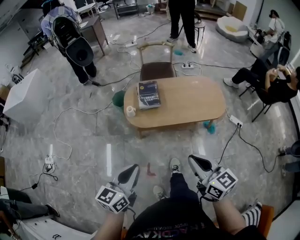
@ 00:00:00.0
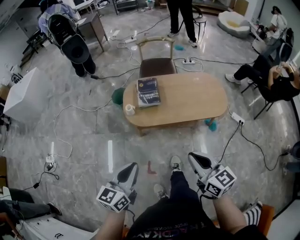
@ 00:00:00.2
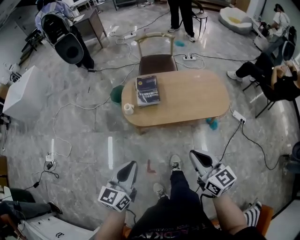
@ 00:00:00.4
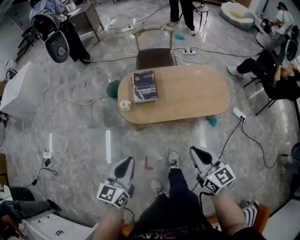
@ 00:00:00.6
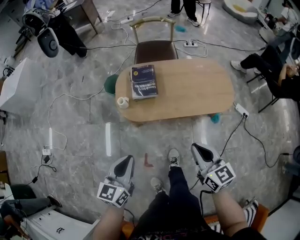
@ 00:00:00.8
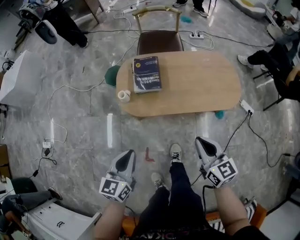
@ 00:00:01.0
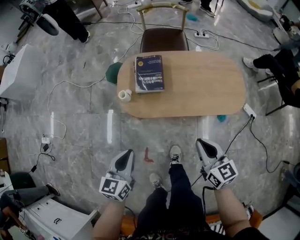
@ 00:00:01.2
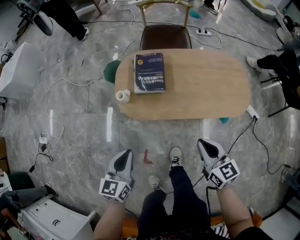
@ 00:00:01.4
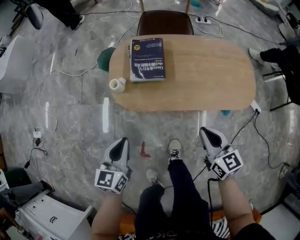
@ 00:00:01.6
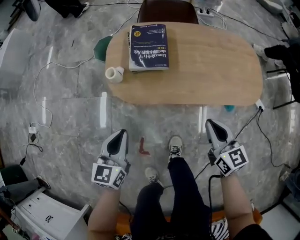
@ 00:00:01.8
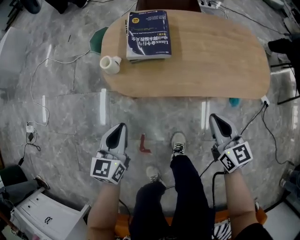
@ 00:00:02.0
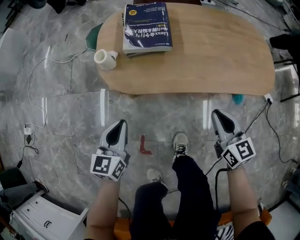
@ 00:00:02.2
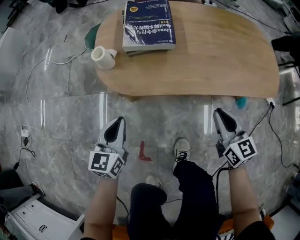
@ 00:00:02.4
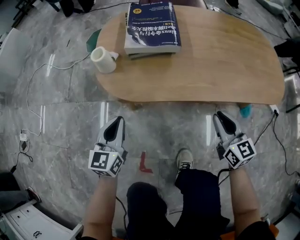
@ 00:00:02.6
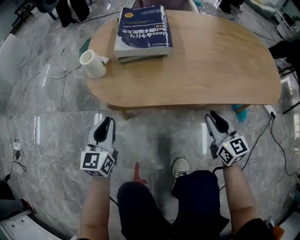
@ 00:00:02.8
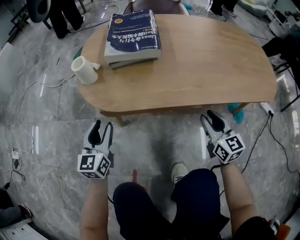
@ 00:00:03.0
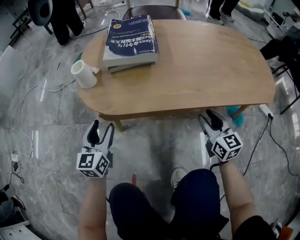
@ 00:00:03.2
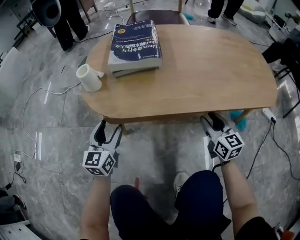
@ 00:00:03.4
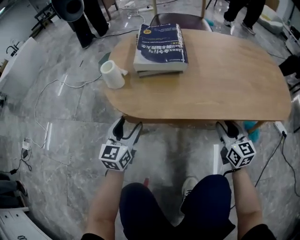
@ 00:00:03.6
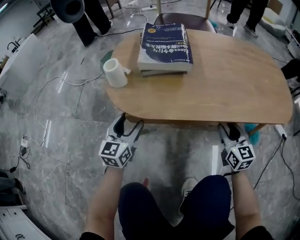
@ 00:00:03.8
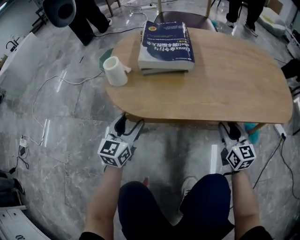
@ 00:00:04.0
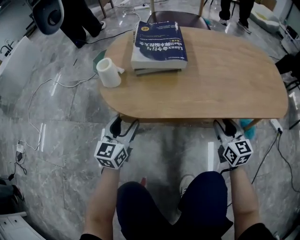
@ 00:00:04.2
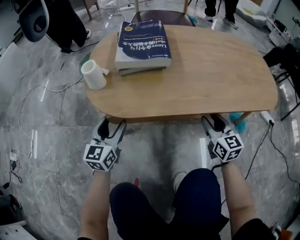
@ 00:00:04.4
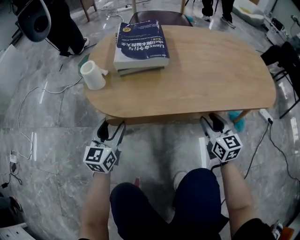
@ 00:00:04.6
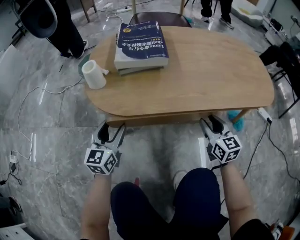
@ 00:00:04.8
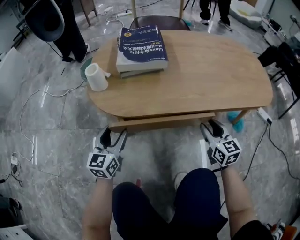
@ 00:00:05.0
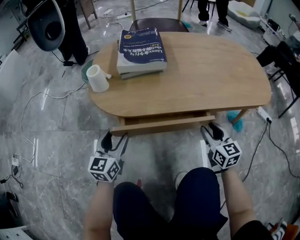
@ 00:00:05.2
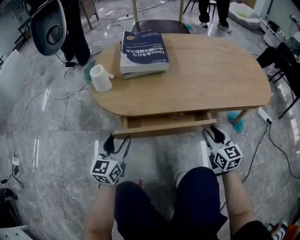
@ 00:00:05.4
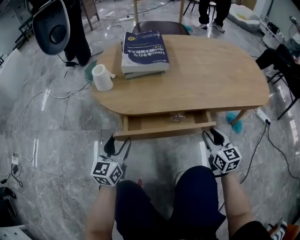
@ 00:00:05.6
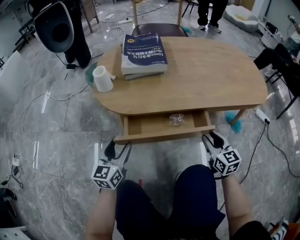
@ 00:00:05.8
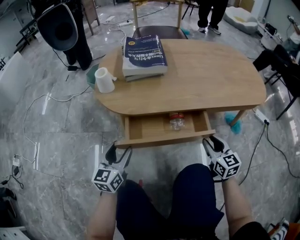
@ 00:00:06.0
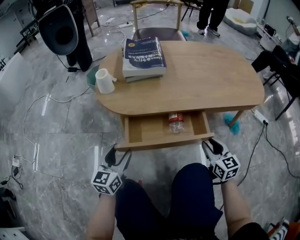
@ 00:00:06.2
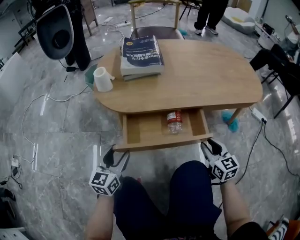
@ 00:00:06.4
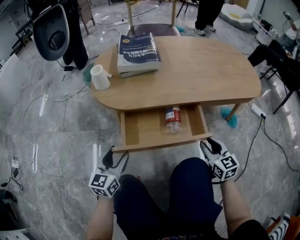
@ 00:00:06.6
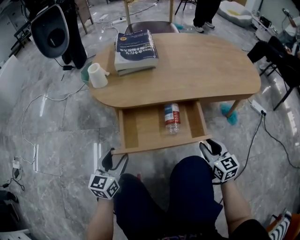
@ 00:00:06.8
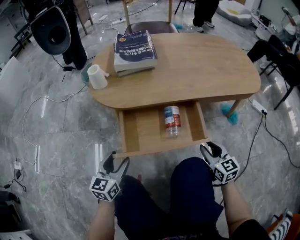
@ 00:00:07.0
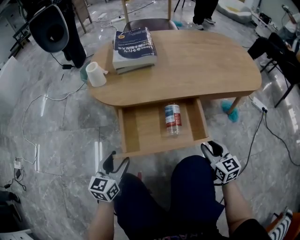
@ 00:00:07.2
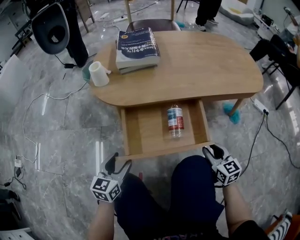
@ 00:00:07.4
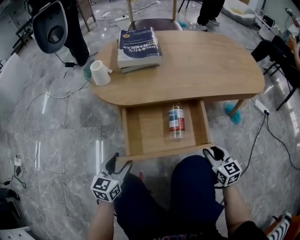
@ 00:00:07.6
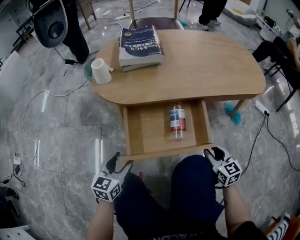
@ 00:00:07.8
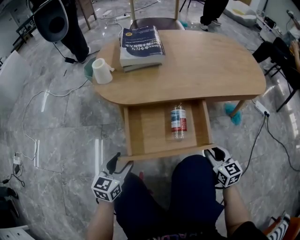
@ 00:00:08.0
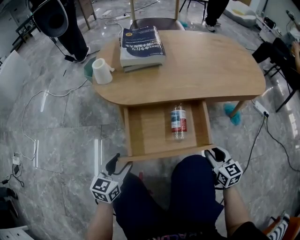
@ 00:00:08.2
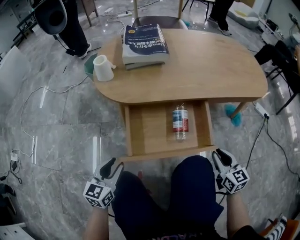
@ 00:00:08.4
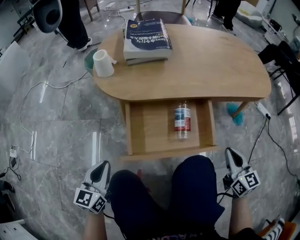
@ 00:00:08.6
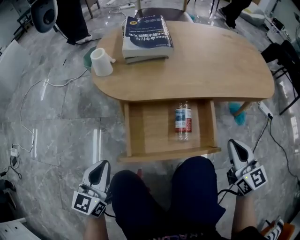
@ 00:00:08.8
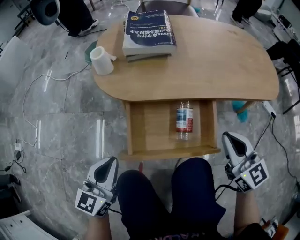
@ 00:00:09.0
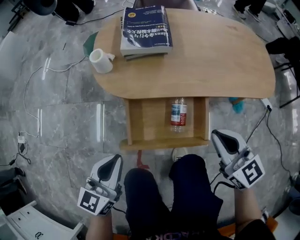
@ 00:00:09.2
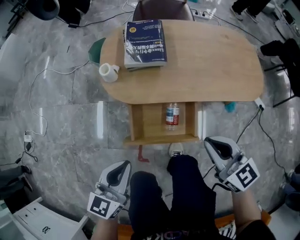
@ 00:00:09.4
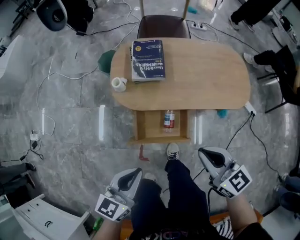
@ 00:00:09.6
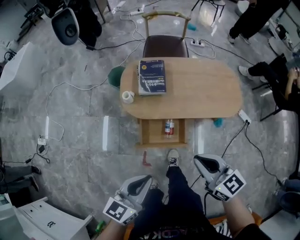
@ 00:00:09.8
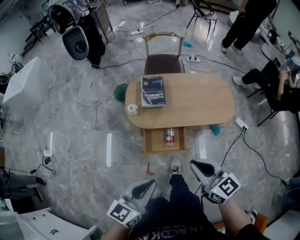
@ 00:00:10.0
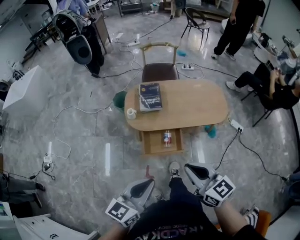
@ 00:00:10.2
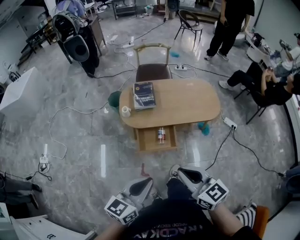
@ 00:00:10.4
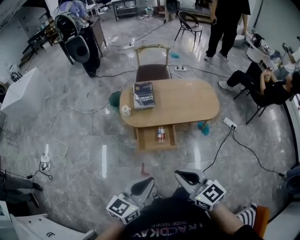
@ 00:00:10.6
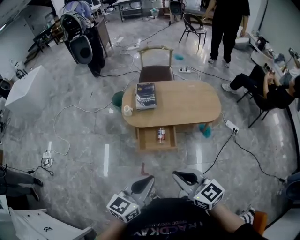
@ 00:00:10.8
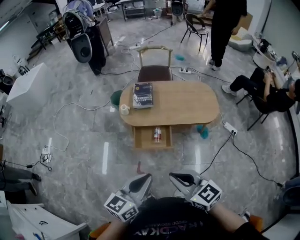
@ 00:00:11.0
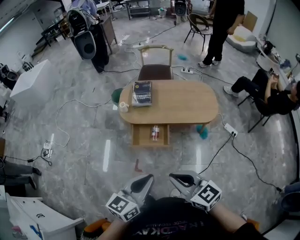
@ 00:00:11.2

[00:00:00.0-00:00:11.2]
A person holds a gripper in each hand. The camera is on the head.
00:00:00.0 to 00:00:01.6: The two grippers go roughly 35 cm downward and forward.
00:00:01.6 to 00:00:03.2: The grippers both shift downward by some 35 cm. The right gripper opens its fingers; the left gripper opens.
00:00:03.2 to 00:00:04.8: The grippers make only small movements.
00:00:04.8 to 00:00:06.4: The grippers both shift backward by roughly 15 cm.
00:00:06.4 to 00:00:08.0: The right gripper changes place by approximately 5 cm, while the left gripper shifts by some 5 cm.
00:00:08.0 to 00:00:09.6: The two grippers go about 50 cm upward. The left gripper closes. The right gripper turns by some 20 degrees, and closes its fingers.
00:00:09.6 to 00:00:11.2: The right gripper shifts some 35 cm backward and upward, while the left gripper is displaced upward, backward and to the right by approximately 35 cm.

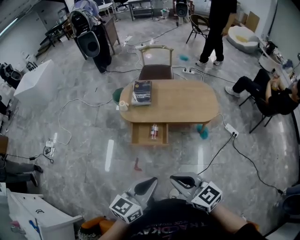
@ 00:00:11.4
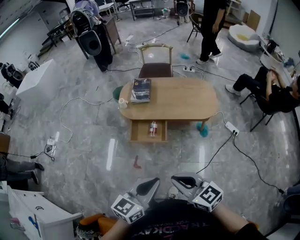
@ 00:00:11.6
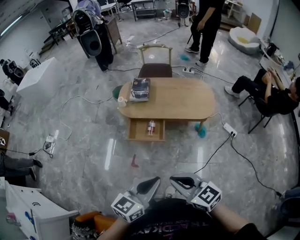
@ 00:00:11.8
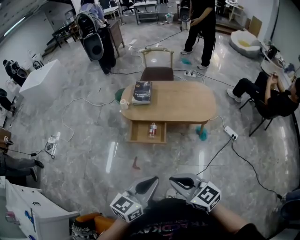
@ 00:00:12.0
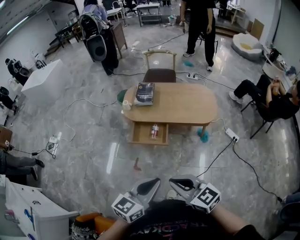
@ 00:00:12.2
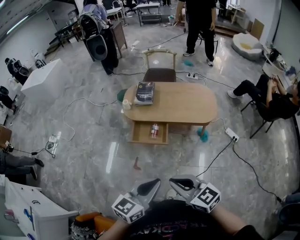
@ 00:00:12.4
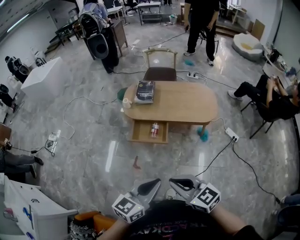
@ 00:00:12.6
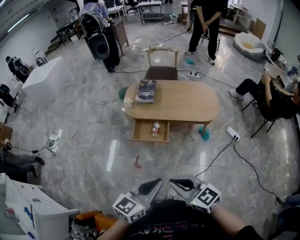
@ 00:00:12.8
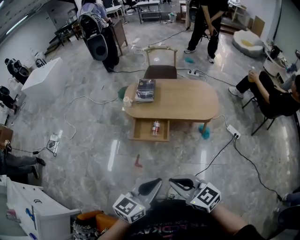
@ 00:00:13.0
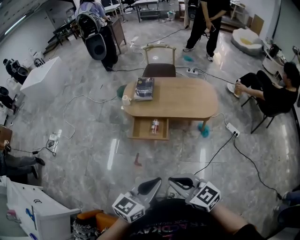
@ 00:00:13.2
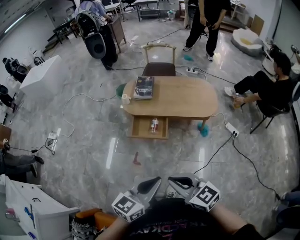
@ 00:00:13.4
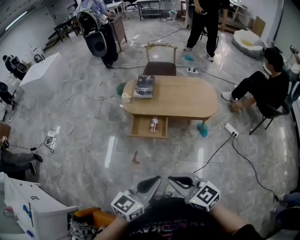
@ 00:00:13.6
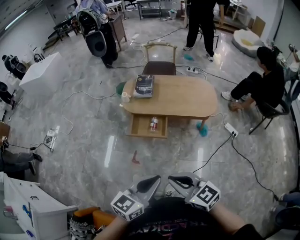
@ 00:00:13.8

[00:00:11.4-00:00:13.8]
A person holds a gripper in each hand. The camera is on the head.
00:00:11.4 to 00:00:12.6: Both grippers move backward, approximately 5 cm.
00:00:12.6 to 00:00:13.8: Both grippers stay put.

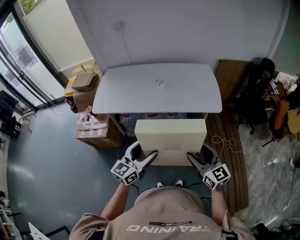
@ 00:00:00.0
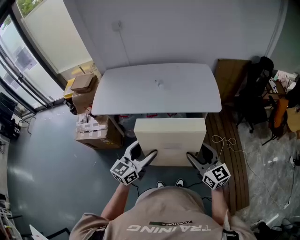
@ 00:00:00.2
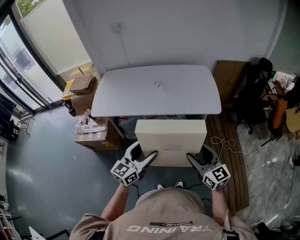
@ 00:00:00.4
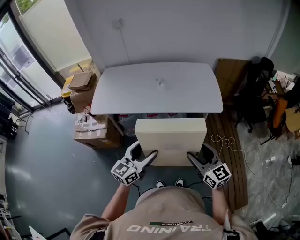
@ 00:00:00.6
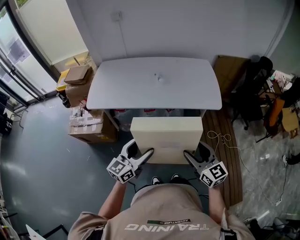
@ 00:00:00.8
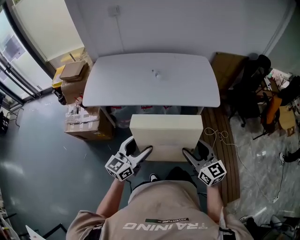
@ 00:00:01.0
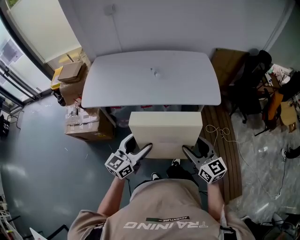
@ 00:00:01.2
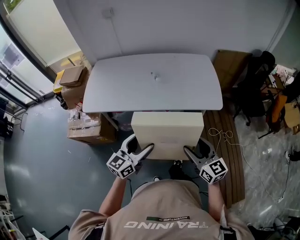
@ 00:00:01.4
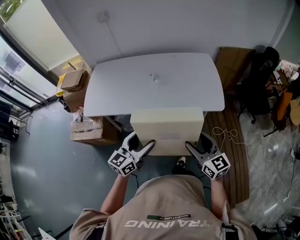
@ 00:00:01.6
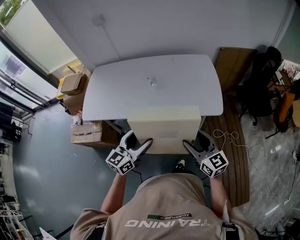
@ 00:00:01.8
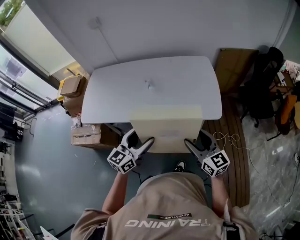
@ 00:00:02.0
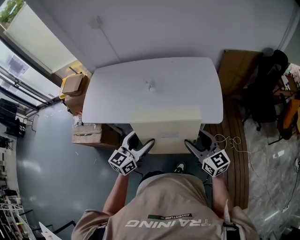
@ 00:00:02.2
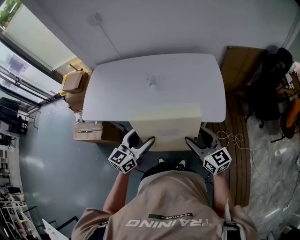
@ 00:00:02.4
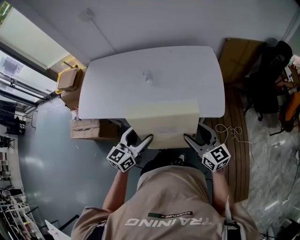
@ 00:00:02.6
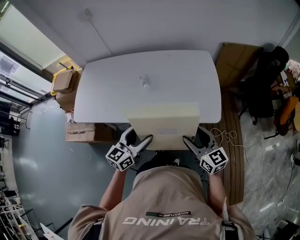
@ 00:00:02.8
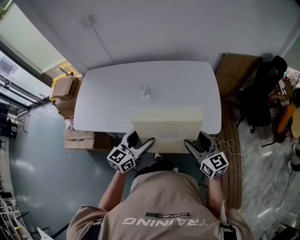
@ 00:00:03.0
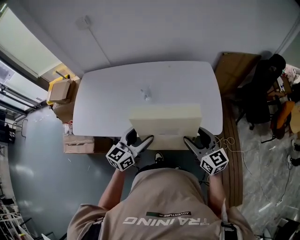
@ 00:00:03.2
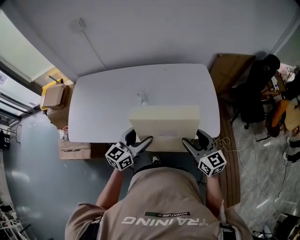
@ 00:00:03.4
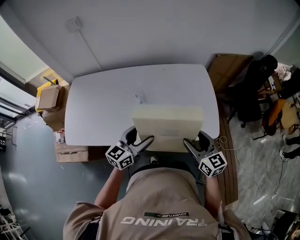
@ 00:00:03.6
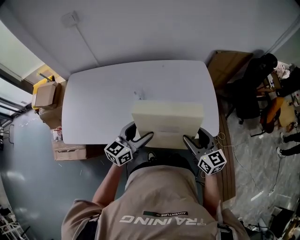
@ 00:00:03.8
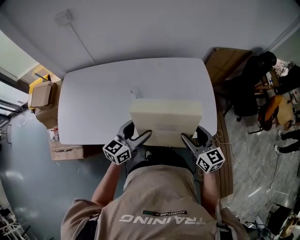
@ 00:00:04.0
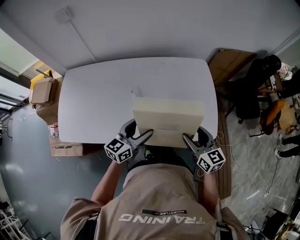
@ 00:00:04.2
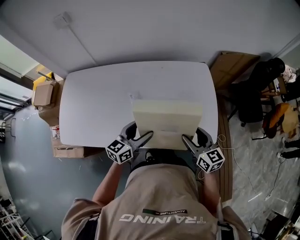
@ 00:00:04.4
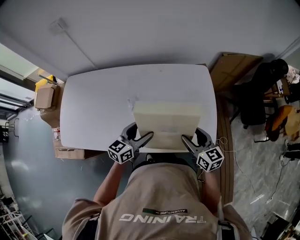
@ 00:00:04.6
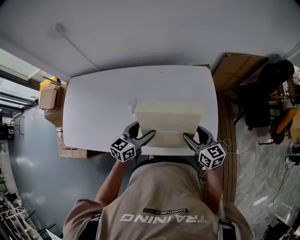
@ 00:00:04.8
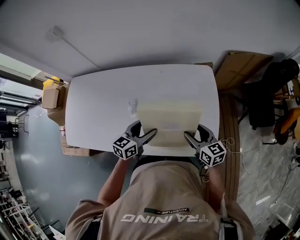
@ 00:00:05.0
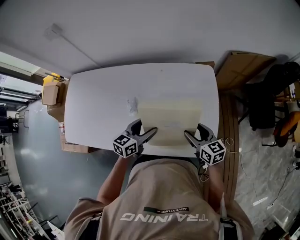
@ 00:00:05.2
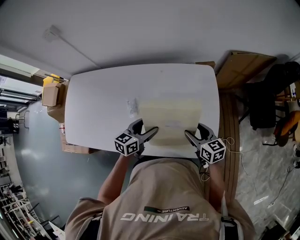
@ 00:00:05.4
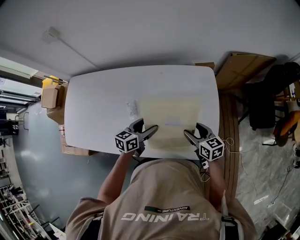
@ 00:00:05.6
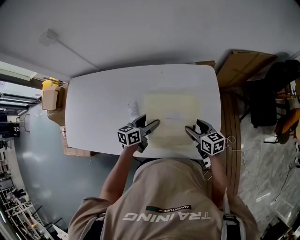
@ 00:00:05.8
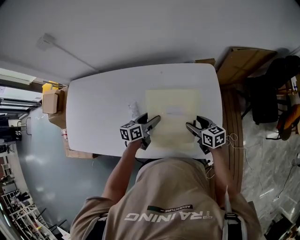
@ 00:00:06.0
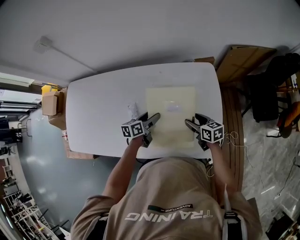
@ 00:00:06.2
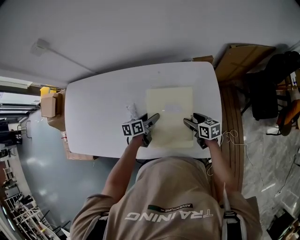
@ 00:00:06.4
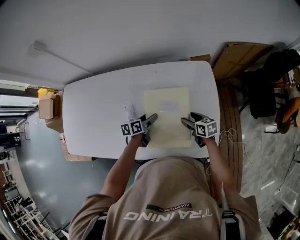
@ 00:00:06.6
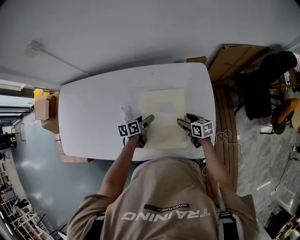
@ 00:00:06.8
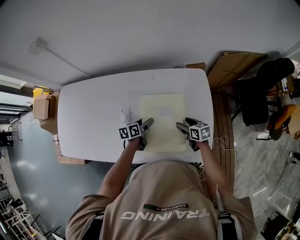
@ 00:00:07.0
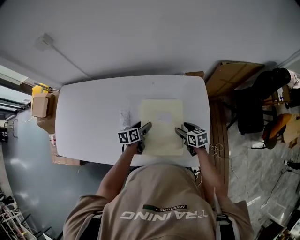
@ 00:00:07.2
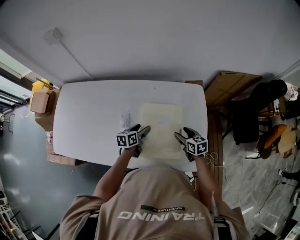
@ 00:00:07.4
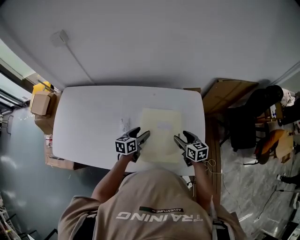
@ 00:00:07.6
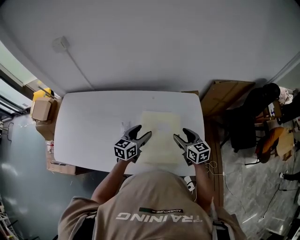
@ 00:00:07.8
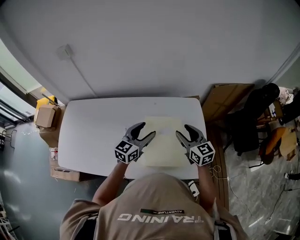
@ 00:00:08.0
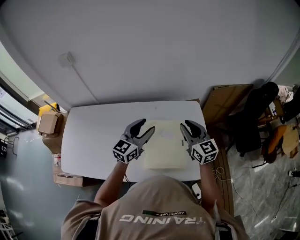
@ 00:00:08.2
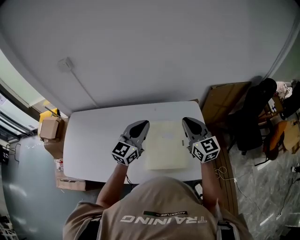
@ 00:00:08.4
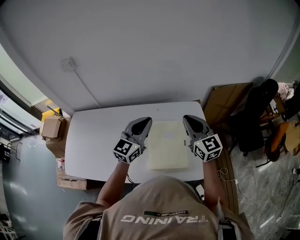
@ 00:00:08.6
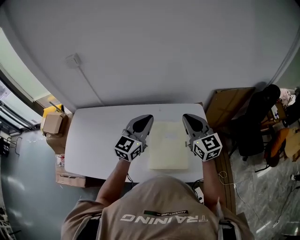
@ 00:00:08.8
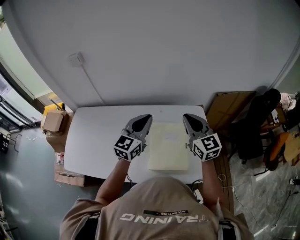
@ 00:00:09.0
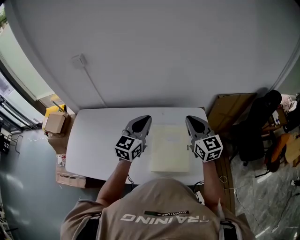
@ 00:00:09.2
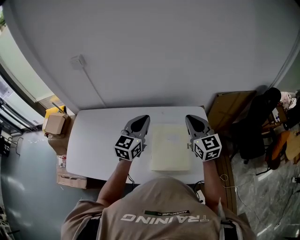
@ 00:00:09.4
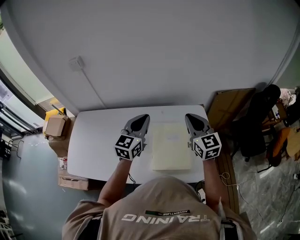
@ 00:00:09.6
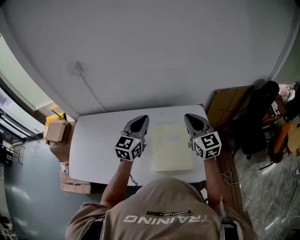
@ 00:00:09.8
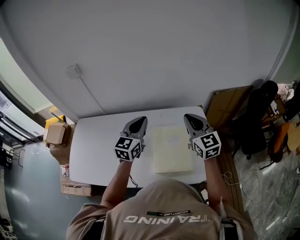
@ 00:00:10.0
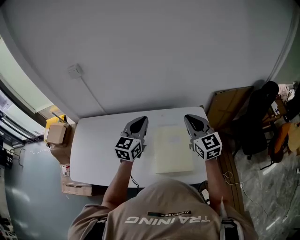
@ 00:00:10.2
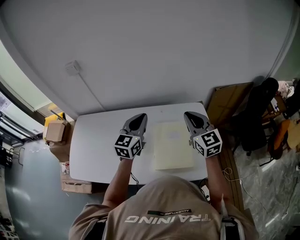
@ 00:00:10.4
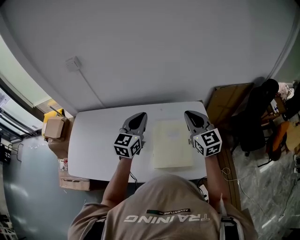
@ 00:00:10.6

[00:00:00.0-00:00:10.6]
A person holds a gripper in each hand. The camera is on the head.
00:00:00.0 to 00:00:01.6: The grippers both shift forward by roughly 15 cm.
00:00:01.6 to 00:00:03.0: Both grippers move forward and to the right, roughly 20 cm.
00:00:03.0 to 00:00:04.6: The grippers both shift forward by approximately 20 cm.
00:00:04.6 to 00:00:06.0: The two grippers go roughly 15 cm forward and downward. The right gripper rotates roughly 20 degrees, while the left gripper turns by about 30 degrees.
00:00:06.0 to 00:00:07.6: The left gripper moves roughly 5 cm downward and comes back, while the right gripper goes downward and returns, about 5 cm each way.
00:00:07.6 to 00:00:09.0: Both grippers move upward, about 30 cm. The right gripper rotates approximately 40 degrees, and closes its fingers. The left gripper rotates about 50 degrees, and closes its fingers.
00:00:09.0 to 00:00:10.6: The grippers make only small movements.
